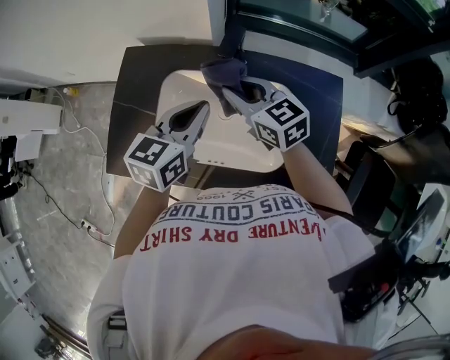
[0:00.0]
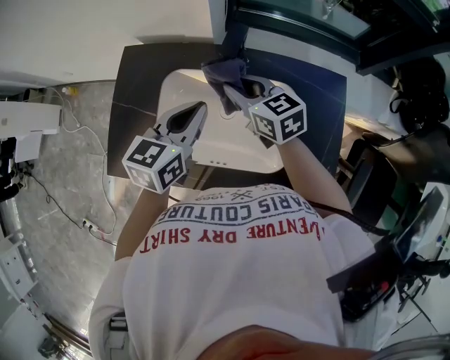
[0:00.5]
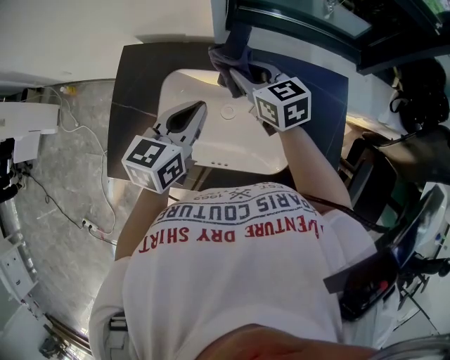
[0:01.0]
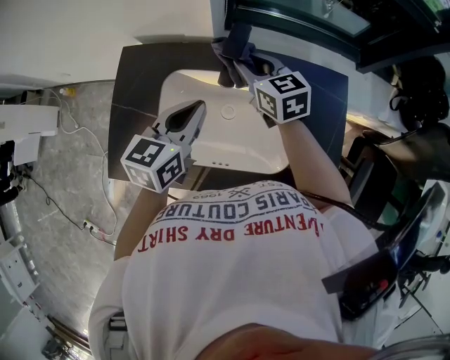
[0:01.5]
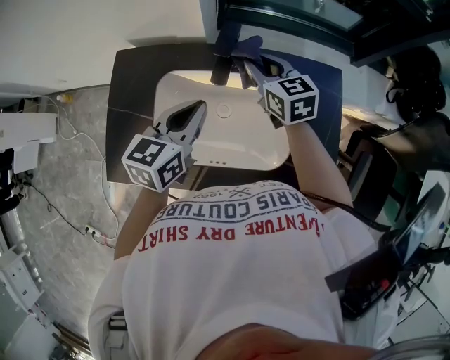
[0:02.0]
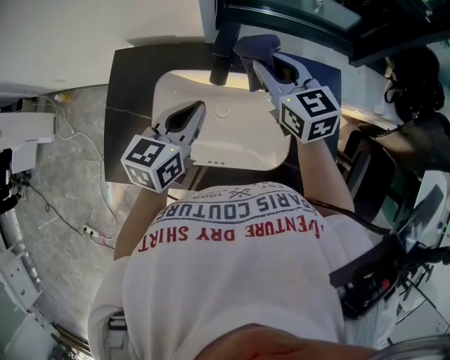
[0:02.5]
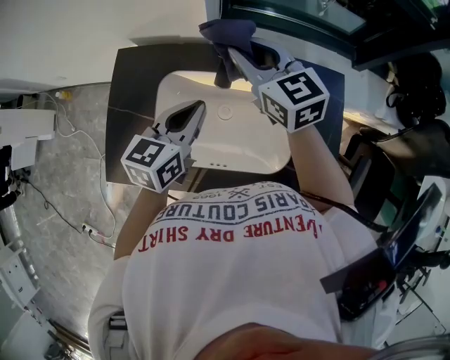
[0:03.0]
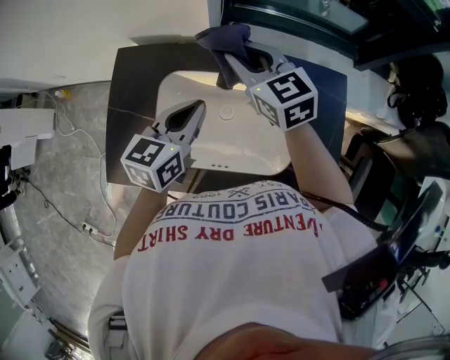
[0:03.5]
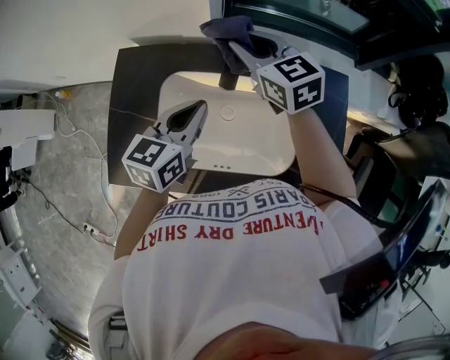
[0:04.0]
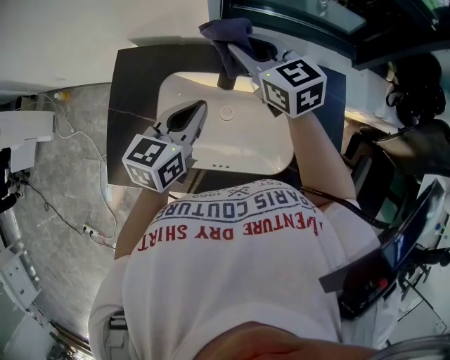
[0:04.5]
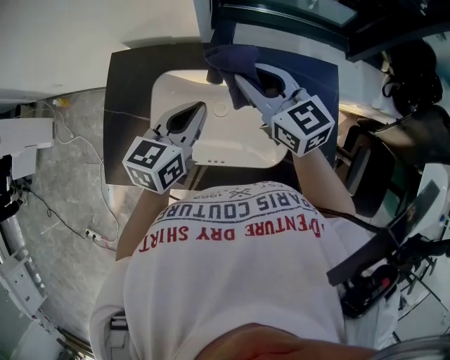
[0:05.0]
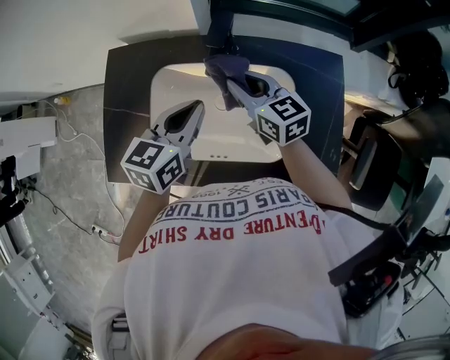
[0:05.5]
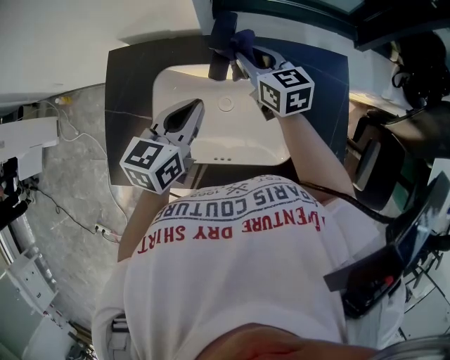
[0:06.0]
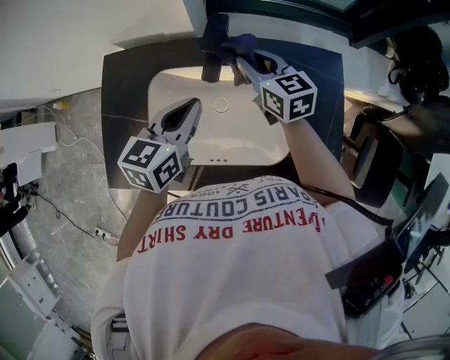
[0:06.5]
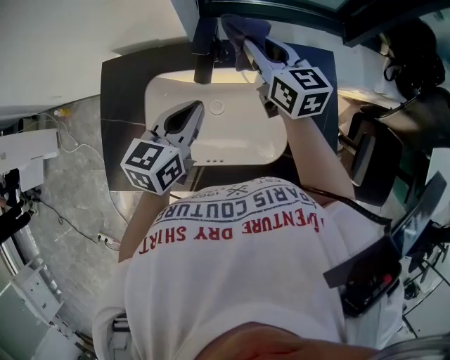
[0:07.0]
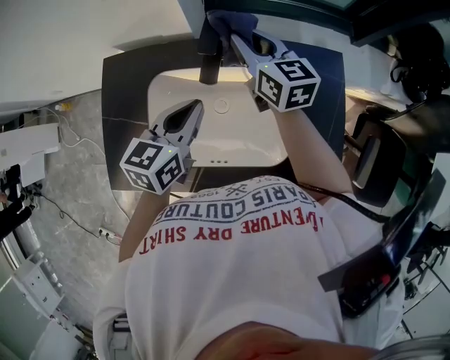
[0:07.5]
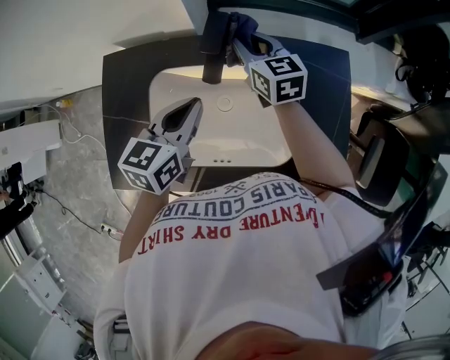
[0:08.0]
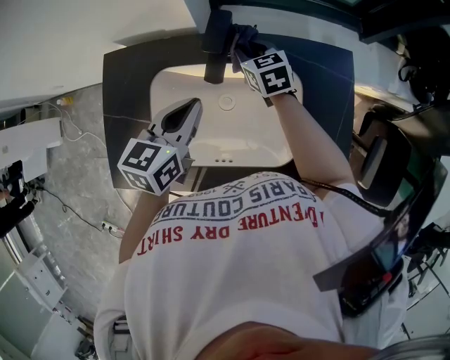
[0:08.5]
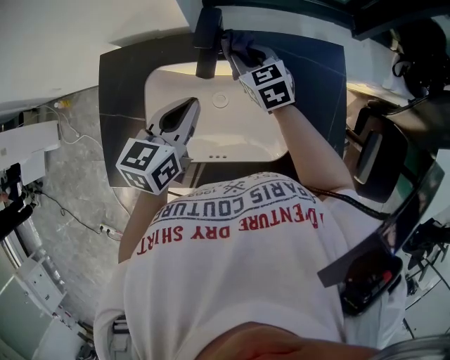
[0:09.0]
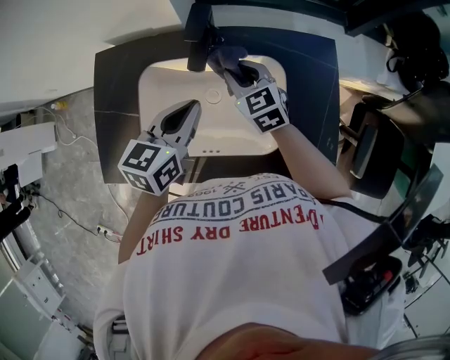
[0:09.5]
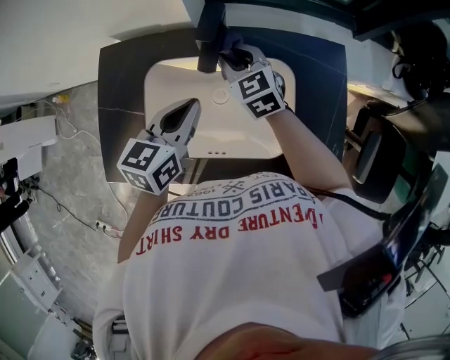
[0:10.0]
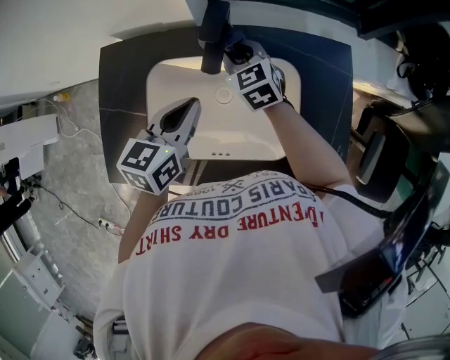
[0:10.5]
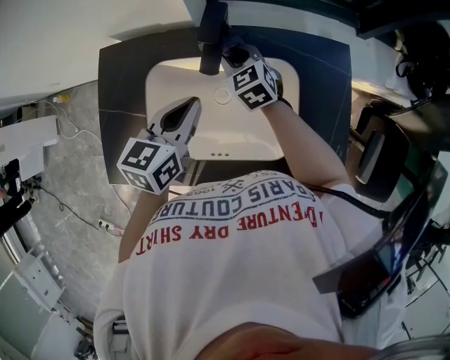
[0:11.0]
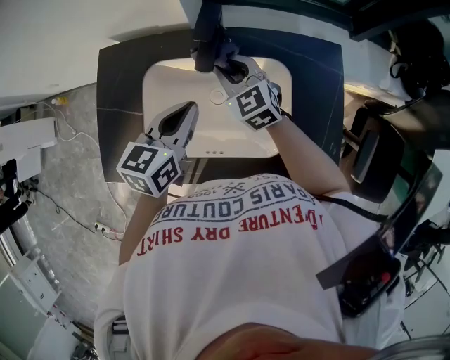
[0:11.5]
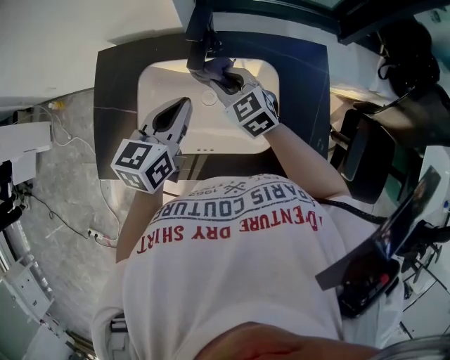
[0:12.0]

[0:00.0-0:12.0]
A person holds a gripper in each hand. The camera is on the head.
0:00.0 to 0:02.0: The right gripper is displaced forward and to the right by some 10 cm.
0:02.0 to 0:04.0: The right gripper goes some 10 cm to the left and upward.
0:04.0 to 0:06.0: The right gripper goes roughly 10 cm downward.
0:06.0 to 0:08.0: The right gripper travels upward and back again, about 10 cm each way.
0:08.0 to 0:10.0: The right gripper shifts approximately 5 cm backward, and turns by about 20 degrees.
0:10.0 to 0:12.0: The right gripper goes some 10 cm backward.

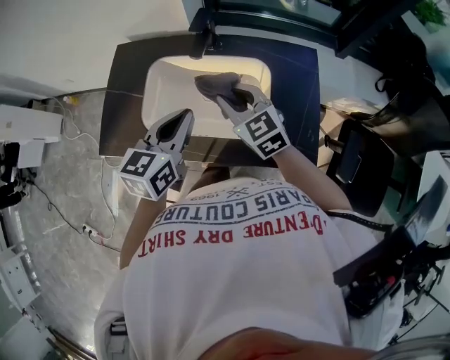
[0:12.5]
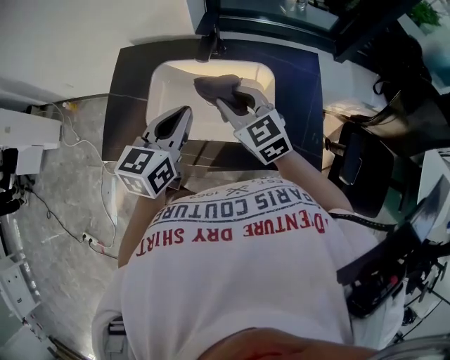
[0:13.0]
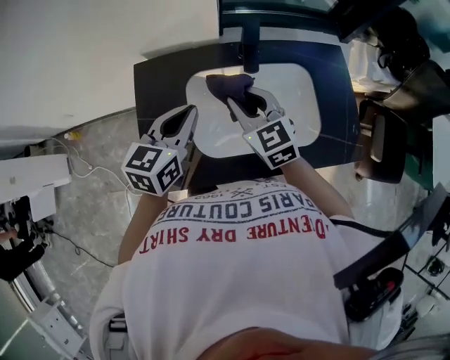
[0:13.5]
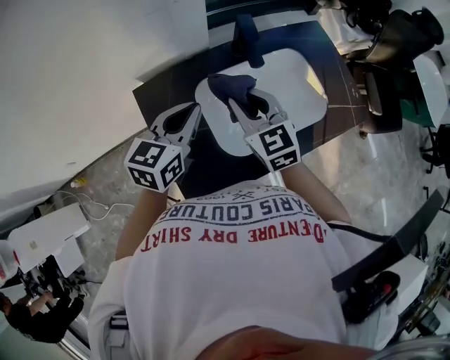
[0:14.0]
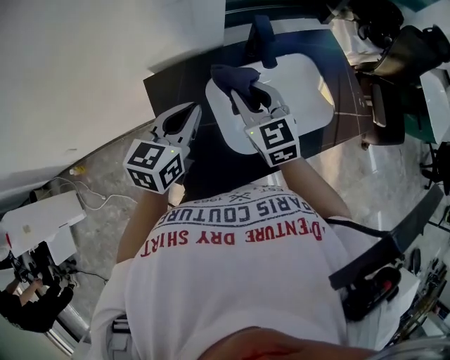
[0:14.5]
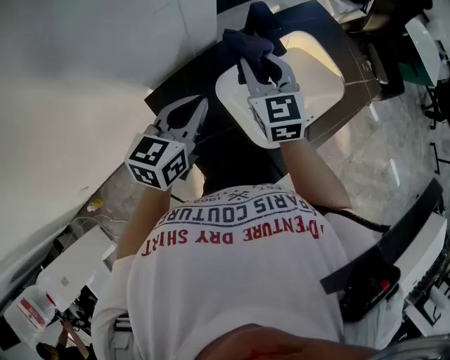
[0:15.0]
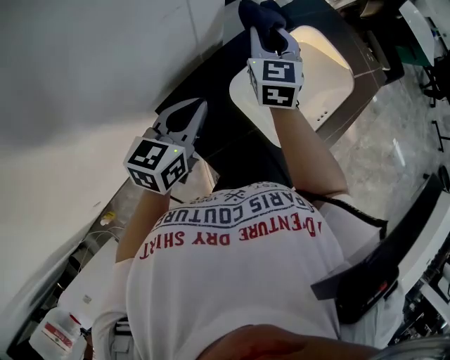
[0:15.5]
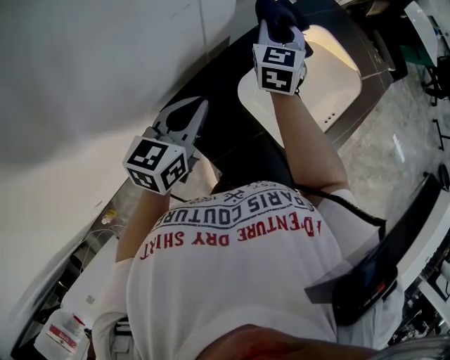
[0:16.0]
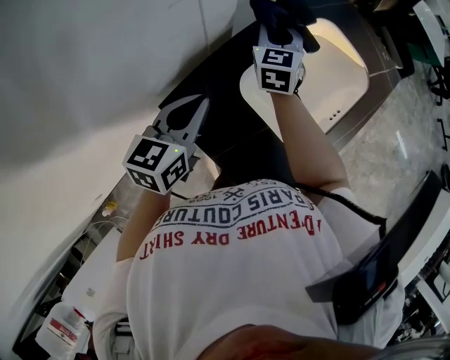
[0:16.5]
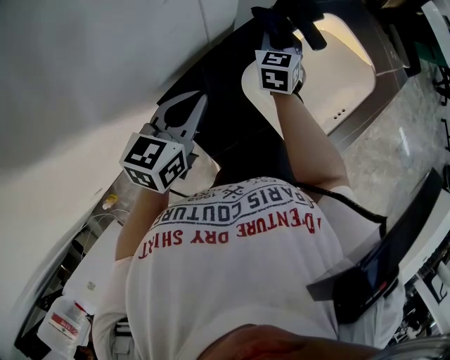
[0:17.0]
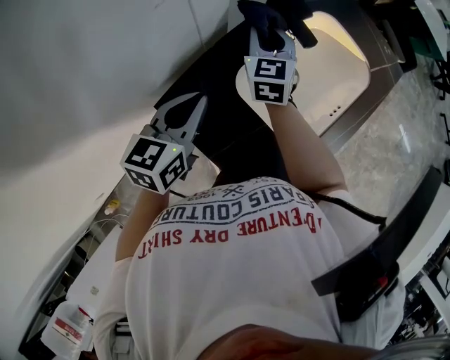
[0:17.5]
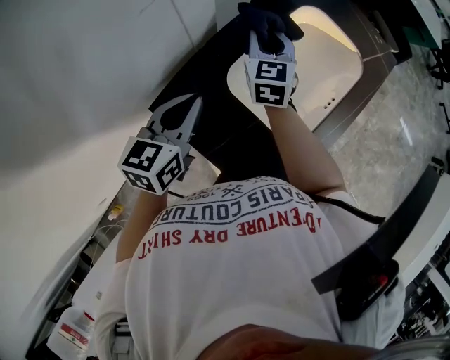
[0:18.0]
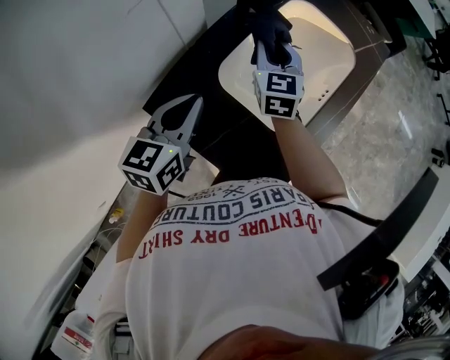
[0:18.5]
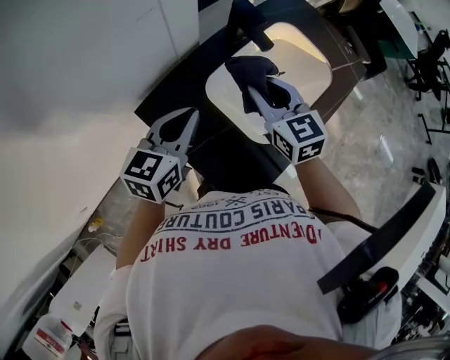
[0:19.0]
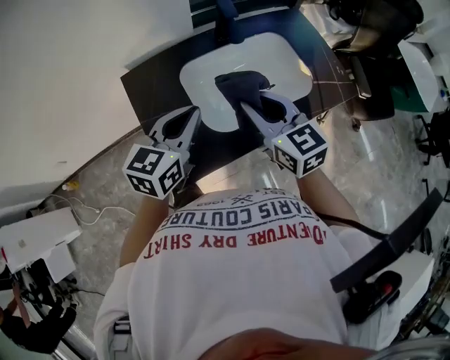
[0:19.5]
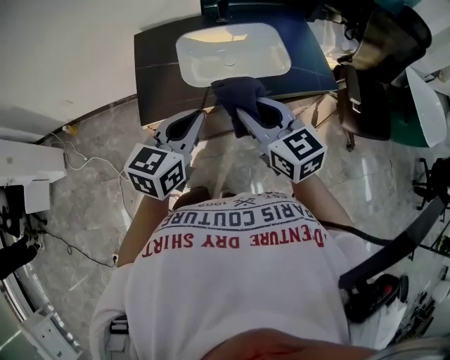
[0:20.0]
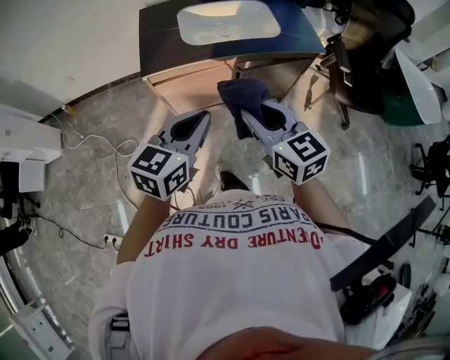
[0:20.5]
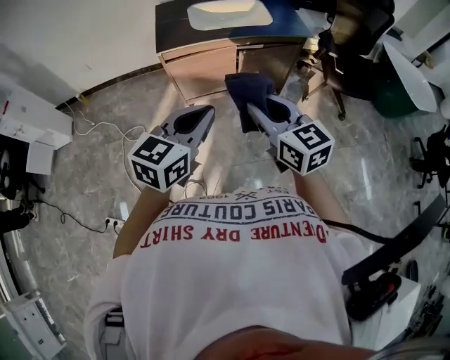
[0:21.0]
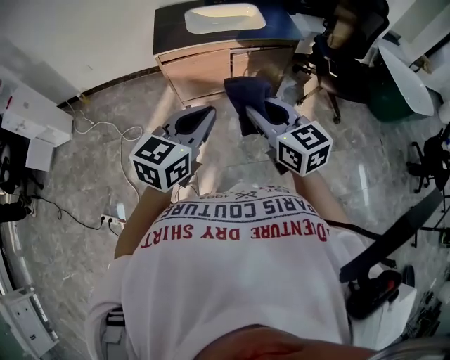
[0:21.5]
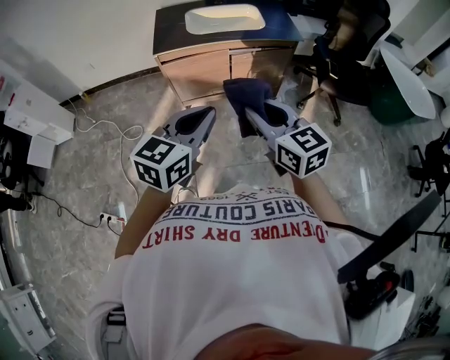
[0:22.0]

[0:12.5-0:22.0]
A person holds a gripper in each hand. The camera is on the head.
0:12.5 to 0:14.5: The right gripper changes place by some 25 cm, and rotates roughly 40 degrees; the left gripper ends up some 30 cm from where it was, and swivels some 30 degrees.
0:14.5 to 0:16.5: The left gripper shifts by about 15 cm, and changes its angle by approximately 20 degrees. The right gripper ends up about 25 cm from where it was, and rotates approximately 50 degrees.
0:18.0 to 0:20.0: The two grippers travel together, some 50 cm. The left gripper changes its angle by approximately 30 degrees, while the right gripper rotates about 70 degrees.
0:20.0 to 0:22.0: The pair of grippers is taken backward, approximately 50 cm.

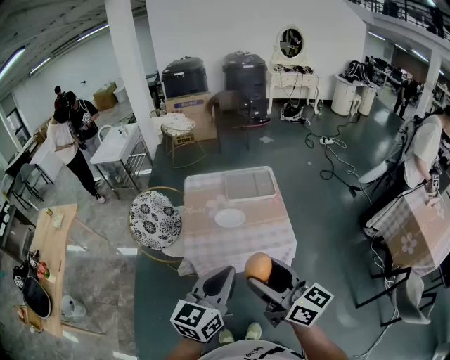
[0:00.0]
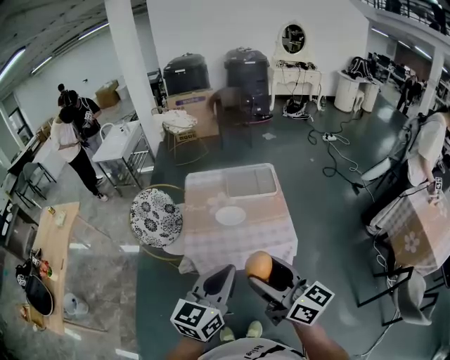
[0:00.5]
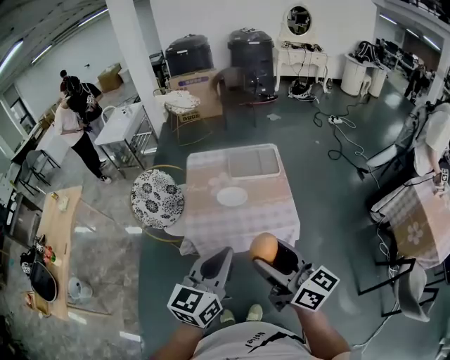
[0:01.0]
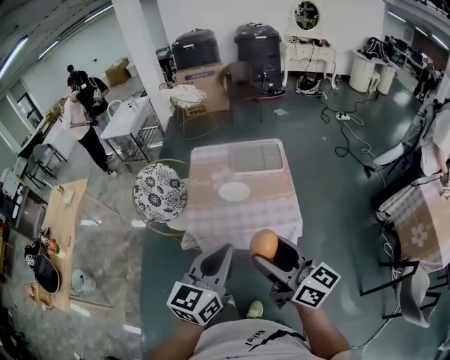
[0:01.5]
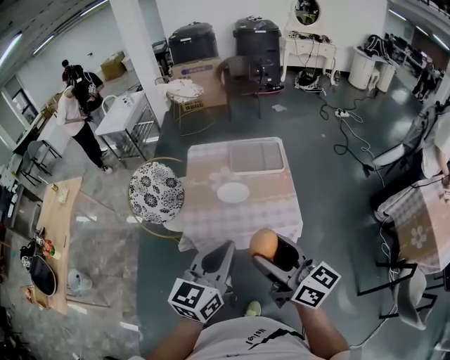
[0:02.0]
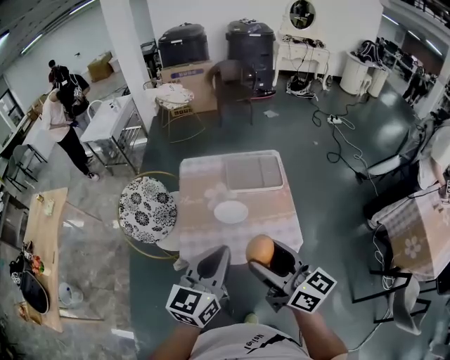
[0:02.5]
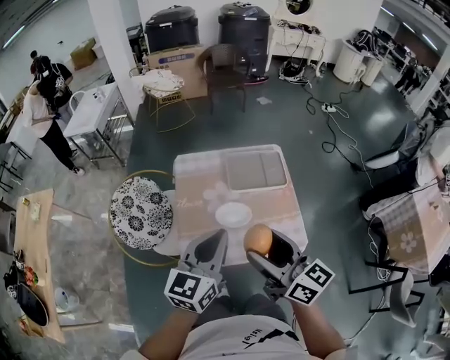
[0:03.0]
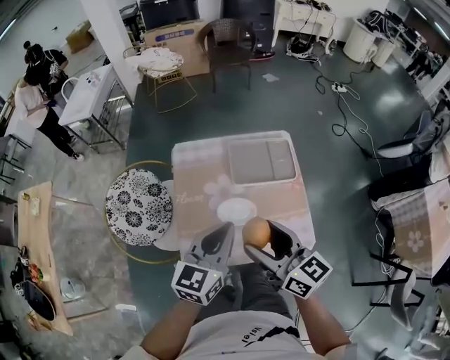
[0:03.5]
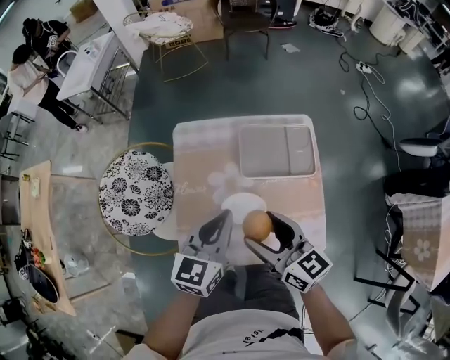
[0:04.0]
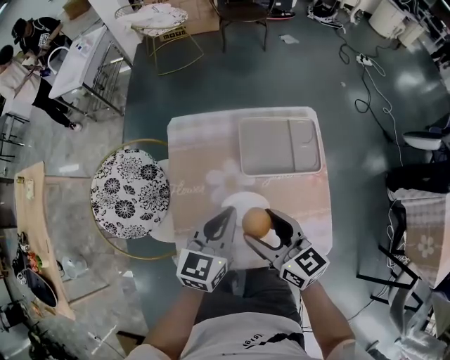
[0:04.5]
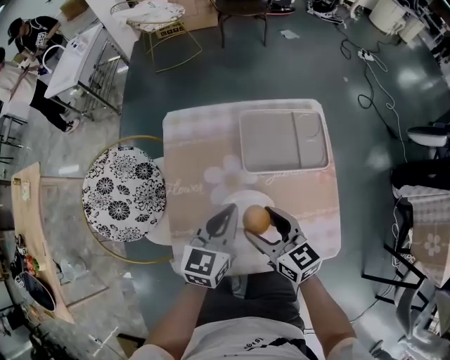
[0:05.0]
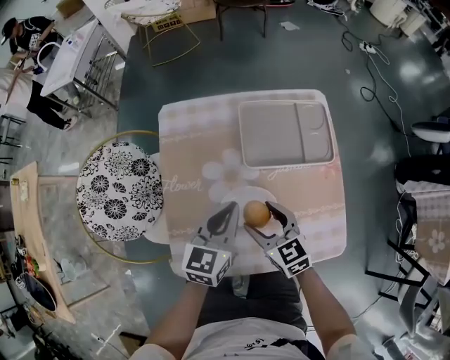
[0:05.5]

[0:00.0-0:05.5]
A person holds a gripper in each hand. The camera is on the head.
0:00.0 to 0:02.0: The left gripper changes place by roughly 5 cm, while the right gripper shifts by about 5 cm.
0:02.0 to 0:03.5: The grippers both shift forward by approximately 25 cm.
0:03.5 to 0:05.5: Both grippers move downward, some 30 cm. The right gripper changes its angle by about 30 degrees.
